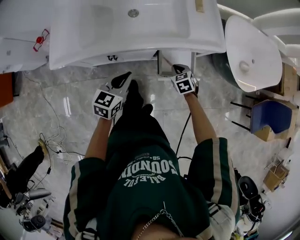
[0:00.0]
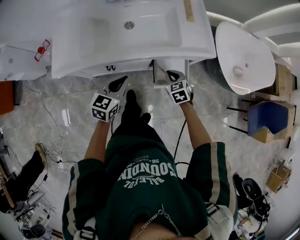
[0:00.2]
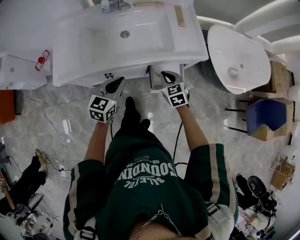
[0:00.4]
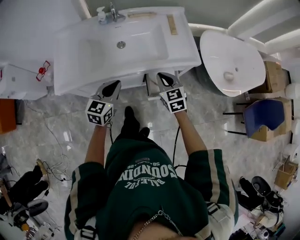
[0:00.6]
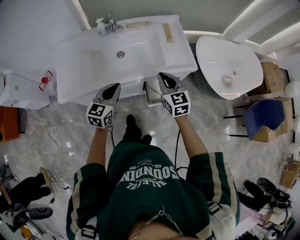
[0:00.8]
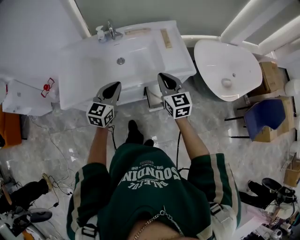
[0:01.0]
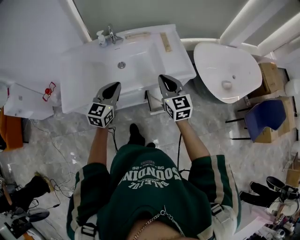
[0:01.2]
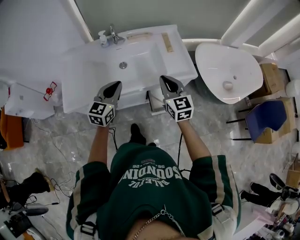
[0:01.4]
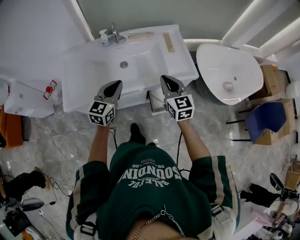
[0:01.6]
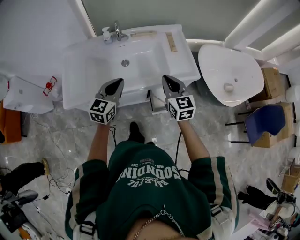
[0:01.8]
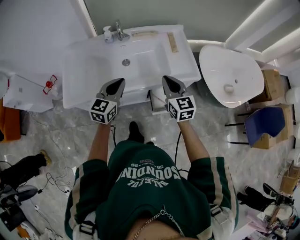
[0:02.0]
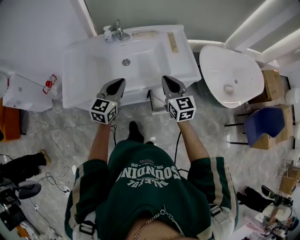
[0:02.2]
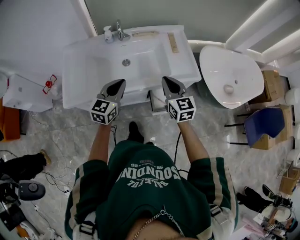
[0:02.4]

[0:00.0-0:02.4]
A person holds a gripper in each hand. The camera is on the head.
0.0 to 1.2 s: The left gripper moves upward and forward, approximately 20 cm. Meanwhile the right gripper moves upward, some 35 cm, and tips its fingers upward by some 50 degrees.
1.2 to 2.4 s: The grippers make only small movements.

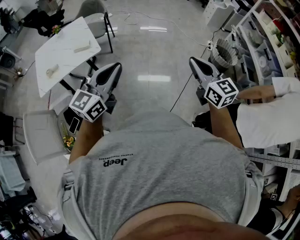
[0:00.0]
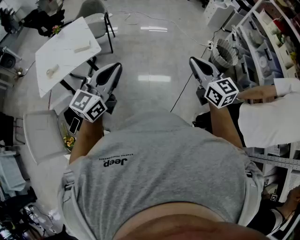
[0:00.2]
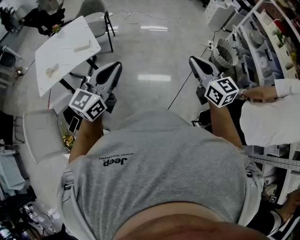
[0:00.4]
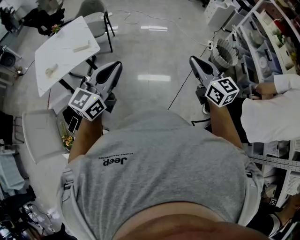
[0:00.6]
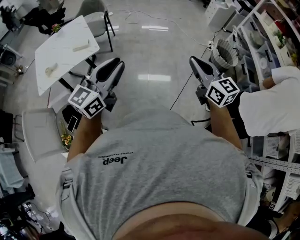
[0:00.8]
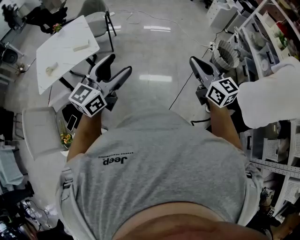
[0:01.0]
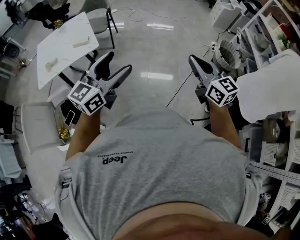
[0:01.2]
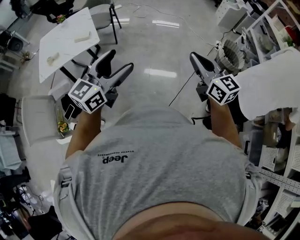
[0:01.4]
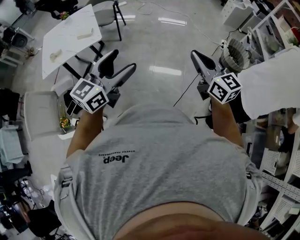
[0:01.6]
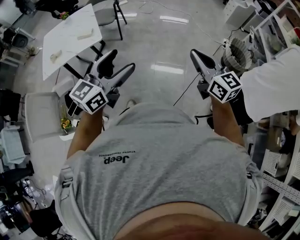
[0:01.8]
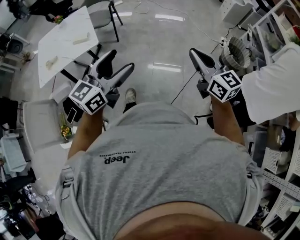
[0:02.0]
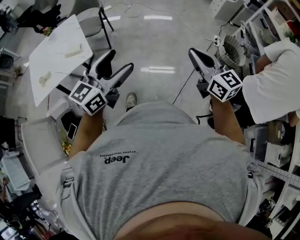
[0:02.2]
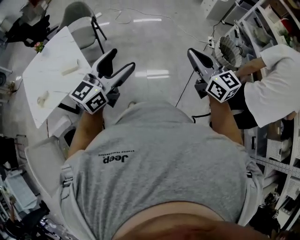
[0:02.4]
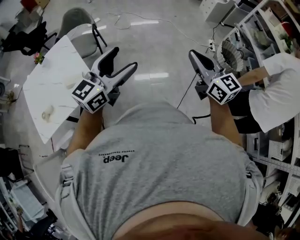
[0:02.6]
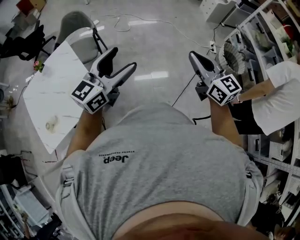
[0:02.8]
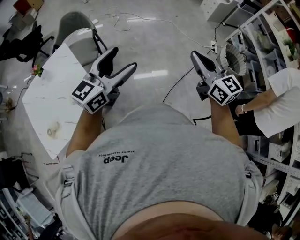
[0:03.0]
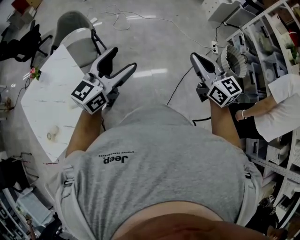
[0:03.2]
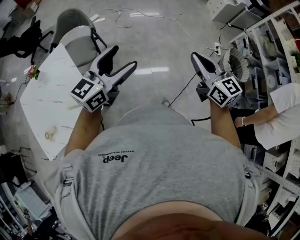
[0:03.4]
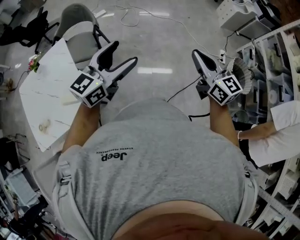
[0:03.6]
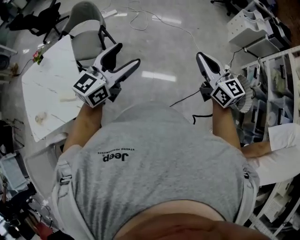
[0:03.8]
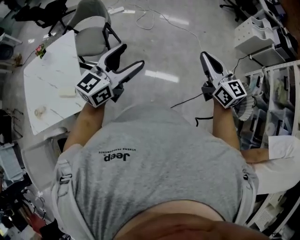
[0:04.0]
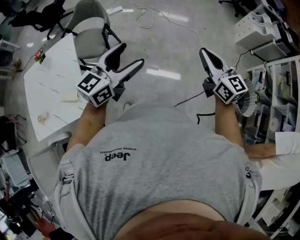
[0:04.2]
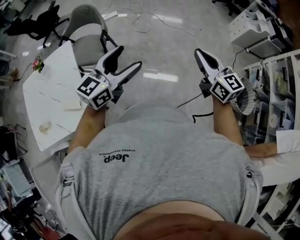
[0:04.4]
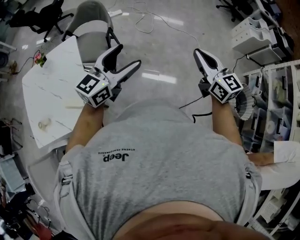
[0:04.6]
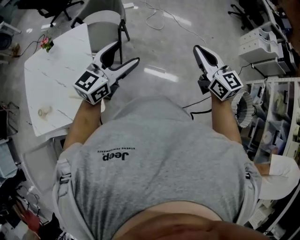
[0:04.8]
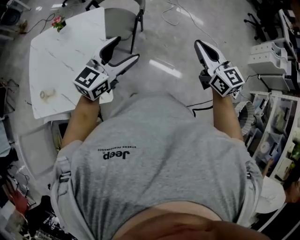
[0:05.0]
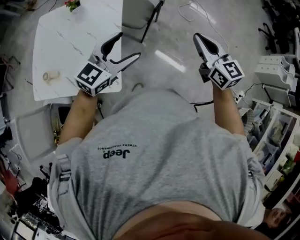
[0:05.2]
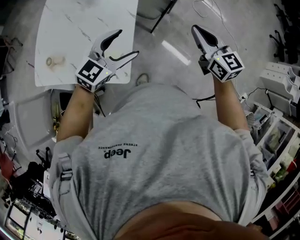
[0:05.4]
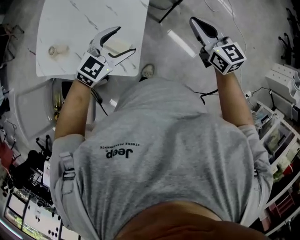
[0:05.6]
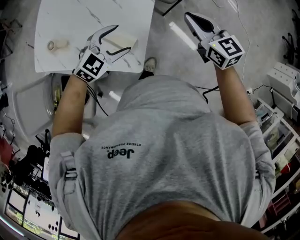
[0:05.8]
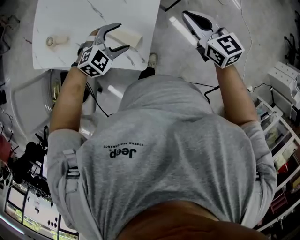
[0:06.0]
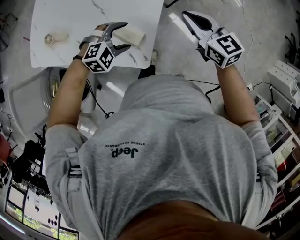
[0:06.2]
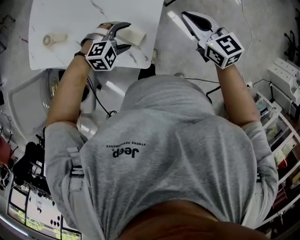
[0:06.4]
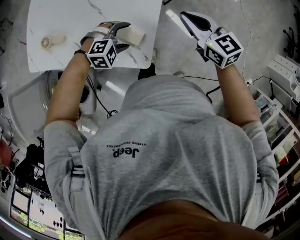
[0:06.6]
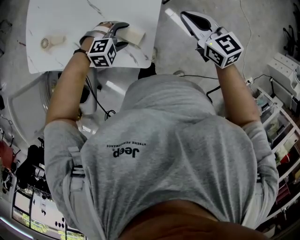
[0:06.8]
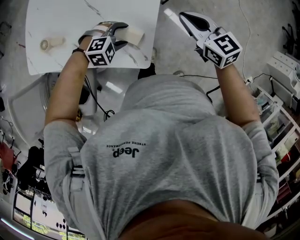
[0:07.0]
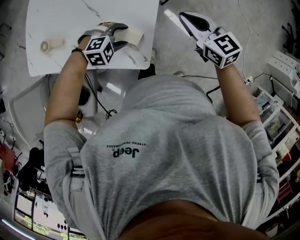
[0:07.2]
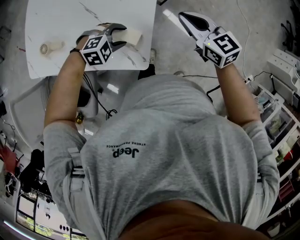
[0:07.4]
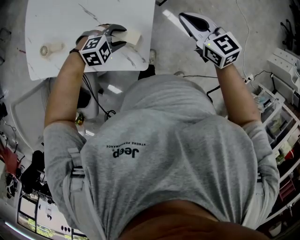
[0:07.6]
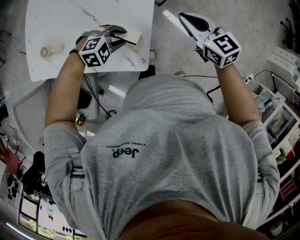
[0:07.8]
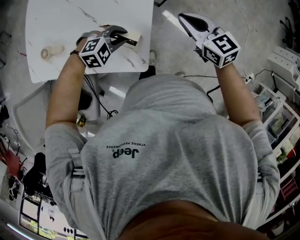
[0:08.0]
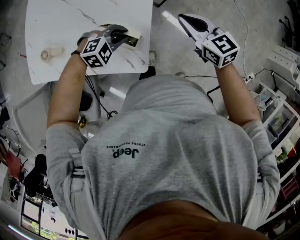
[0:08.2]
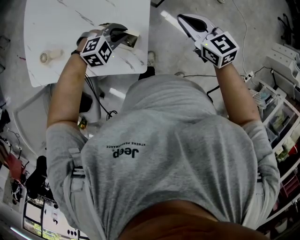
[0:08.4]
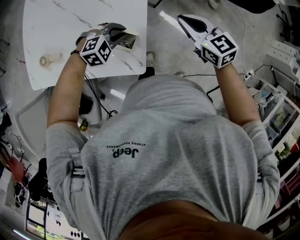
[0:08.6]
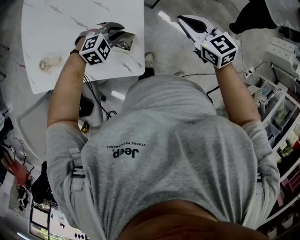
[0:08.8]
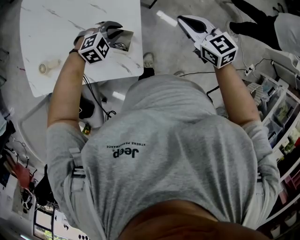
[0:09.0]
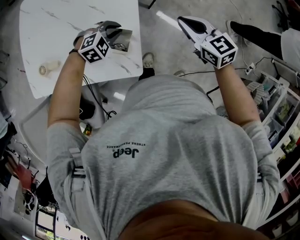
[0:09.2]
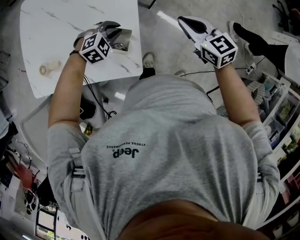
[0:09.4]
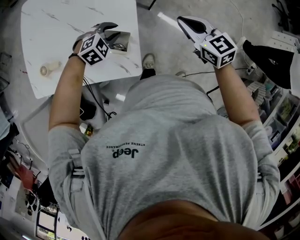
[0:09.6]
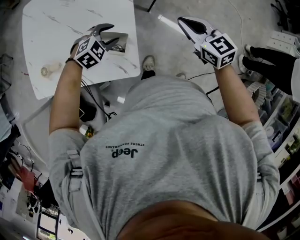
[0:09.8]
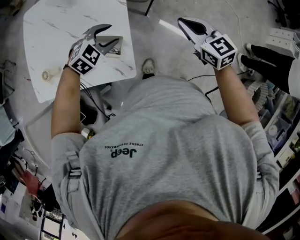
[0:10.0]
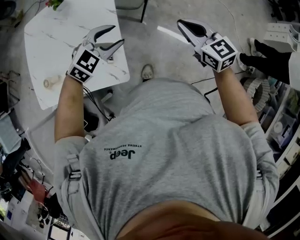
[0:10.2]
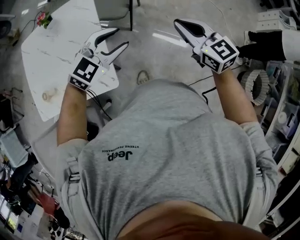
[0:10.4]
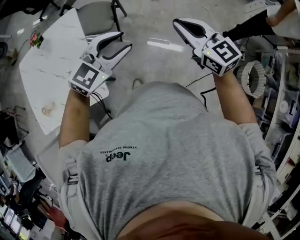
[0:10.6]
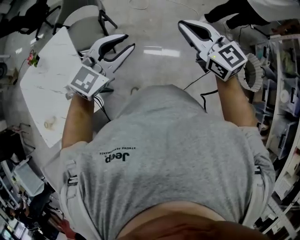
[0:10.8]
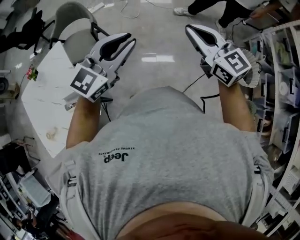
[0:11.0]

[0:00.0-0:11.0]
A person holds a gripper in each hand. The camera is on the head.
0.0 to 1.6 s: The grippers both shift to the right by approximately 10 cm. The left gripper opens up.
1.6 to 3.2 s: The pair of grippers is taken forward and to the left, roughly 50 cm.
3.2 to 4.8 s: The right gripper is displaced forward by some 25 cm, and rotates roughly 20 degrees. Meanwhile the left gripper travels forward and to the left by approximately 20 cm, and changes its angle by roughly 20 degrees.
4.8 to 6.2 s: The left gripper heads downward and to the left, covering some 50 cm, and tips its fingers downward by about 50 degrees. Meanwhile the right gripper travels to the left and downward by about 50 cm, and turns by approximately 40 degrees.
6.2 to 7.8 s: The left gripper closes.
7.8 to 9.4 s: The right gripper moves approximately 5 cm; the left gripper changes place by about 10 cm.
9.4 to 11.0 s: Both grippers are carried roughly 50 cm. The right gripper changes its angle by roughly 40 degrees. The left gripper angles its fingers upward, by about 50 degrees.

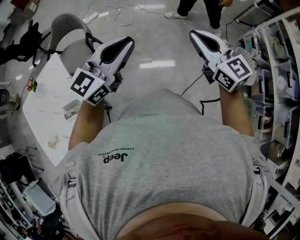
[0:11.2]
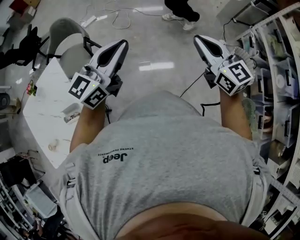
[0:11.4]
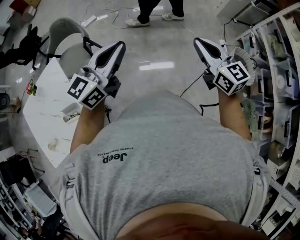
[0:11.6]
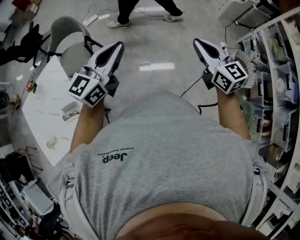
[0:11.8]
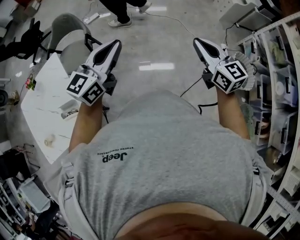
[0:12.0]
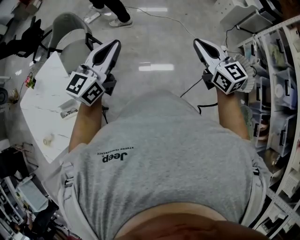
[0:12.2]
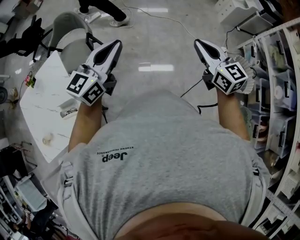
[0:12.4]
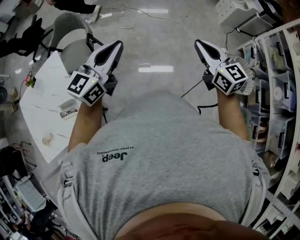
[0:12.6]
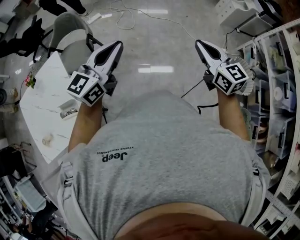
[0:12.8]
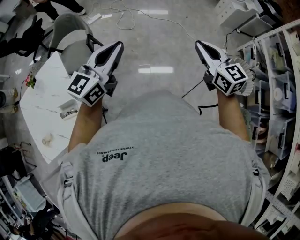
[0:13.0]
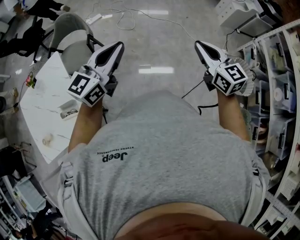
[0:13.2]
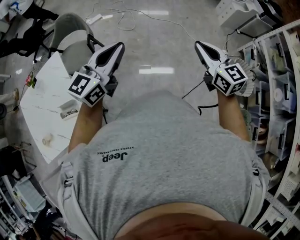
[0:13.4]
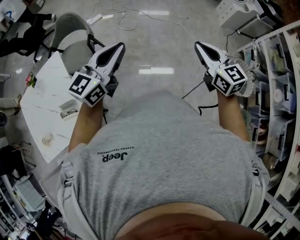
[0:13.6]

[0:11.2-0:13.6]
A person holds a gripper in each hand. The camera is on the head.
11.2 to 12.4 s: The right gripper shifts by roughly 5 cm.
12.4 to 13.6 s: The two grippers keep their place.

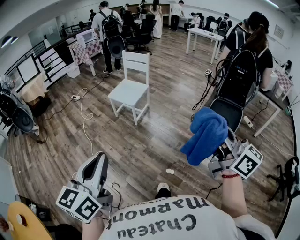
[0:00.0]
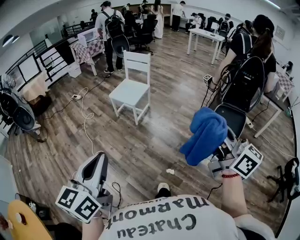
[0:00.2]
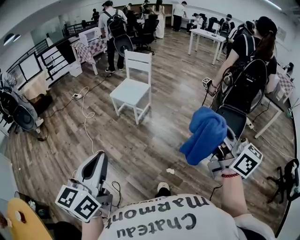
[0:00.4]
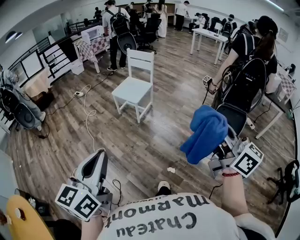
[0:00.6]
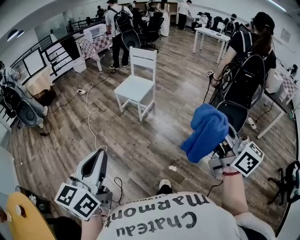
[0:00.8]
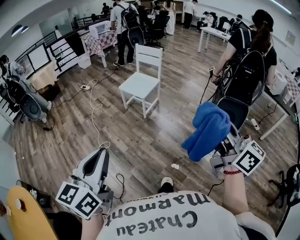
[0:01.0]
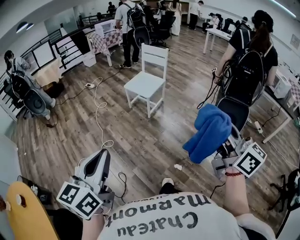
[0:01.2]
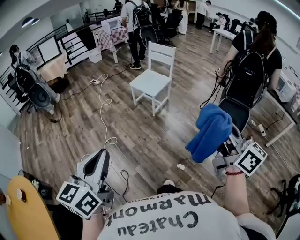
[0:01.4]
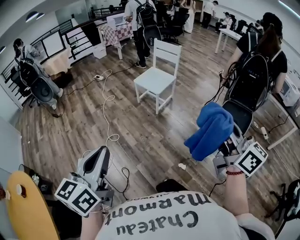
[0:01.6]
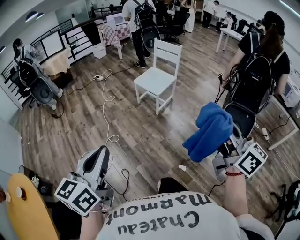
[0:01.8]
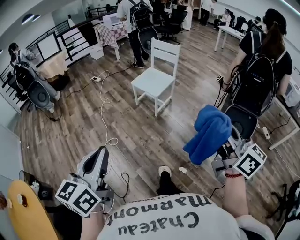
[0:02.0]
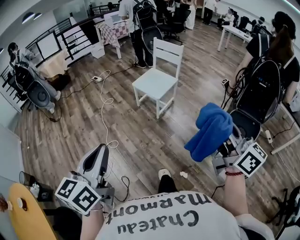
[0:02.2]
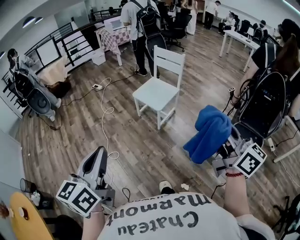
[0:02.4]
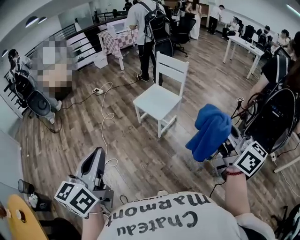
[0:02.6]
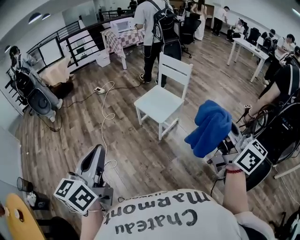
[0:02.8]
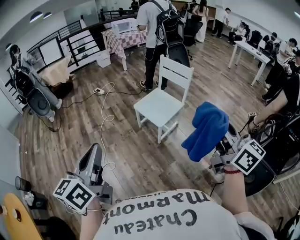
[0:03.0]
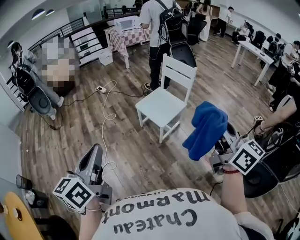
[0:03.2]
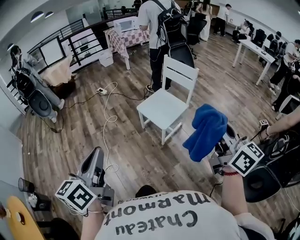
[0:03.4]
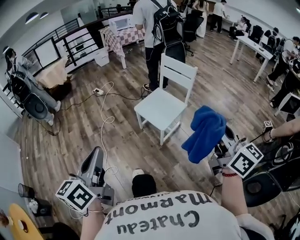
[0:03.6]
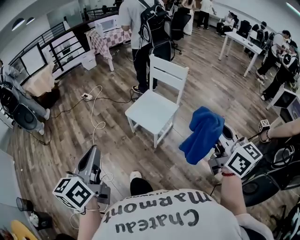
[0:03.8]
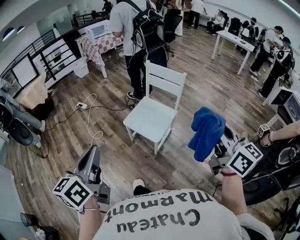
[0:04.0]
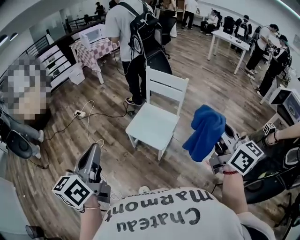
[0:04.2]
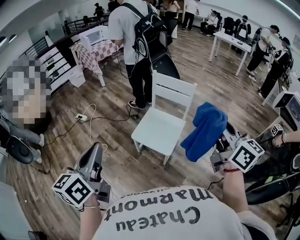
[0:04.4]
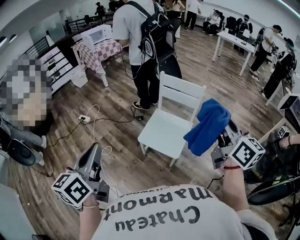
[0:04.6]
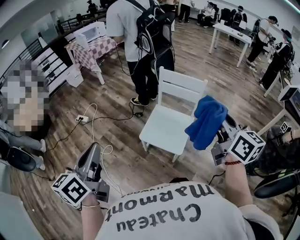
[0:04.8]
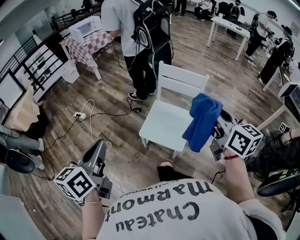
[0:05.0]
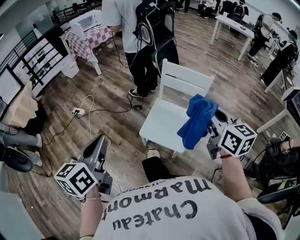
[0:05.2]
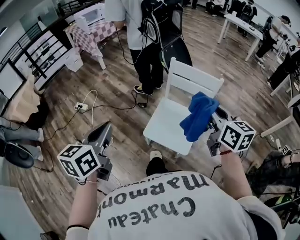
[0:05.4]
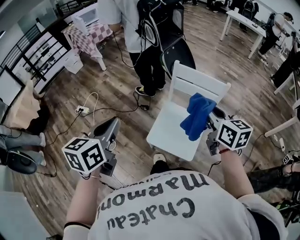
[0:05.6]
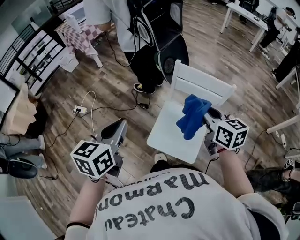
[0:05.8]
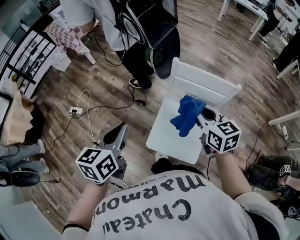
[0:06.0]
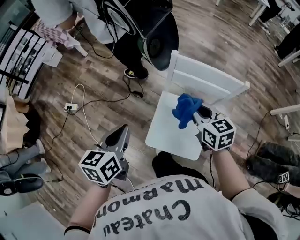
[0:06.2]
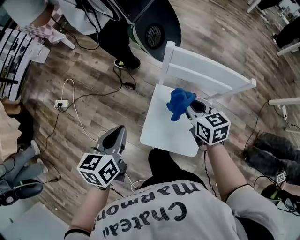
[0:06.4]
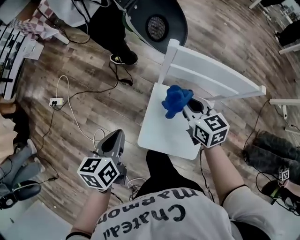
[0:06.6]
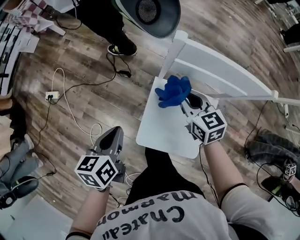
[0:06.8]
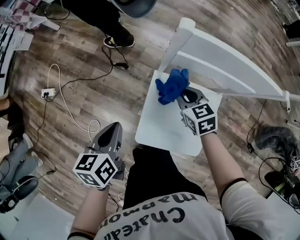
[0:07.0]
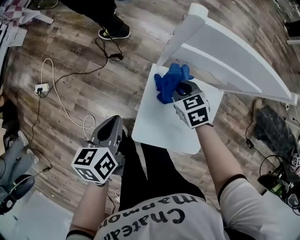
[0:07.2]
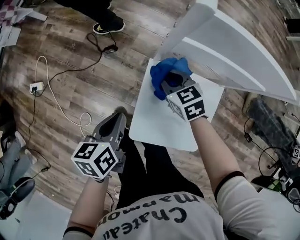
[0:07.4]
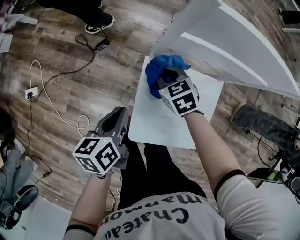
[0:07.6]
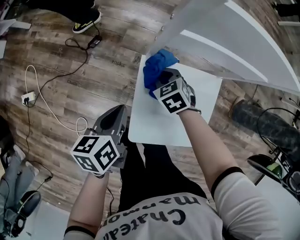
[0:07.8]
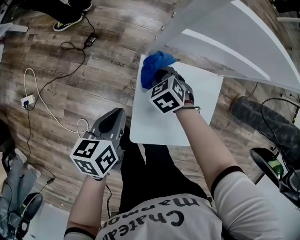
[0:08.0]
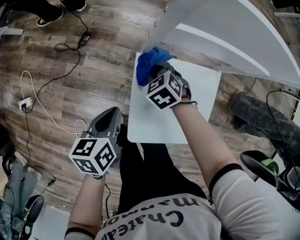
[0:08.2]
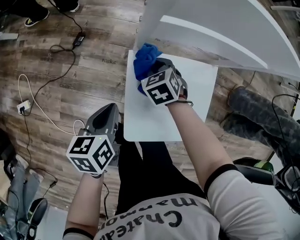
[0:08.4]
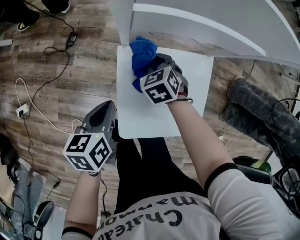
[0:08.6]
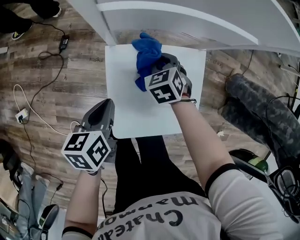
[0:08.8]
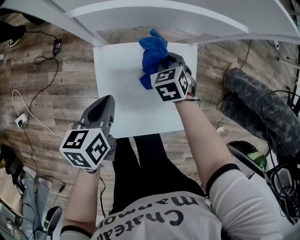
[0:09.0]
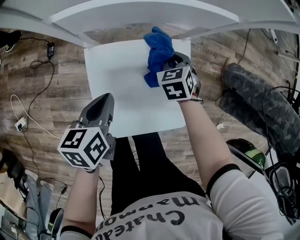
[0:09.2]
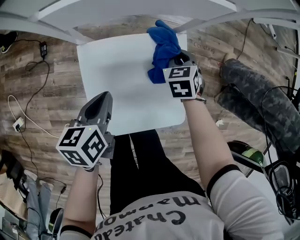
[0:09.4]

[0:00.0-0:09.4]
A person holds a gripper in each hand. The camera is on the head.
0.0 to 1.6 s: The two grippers go some 10 cm to the left.
1.6 to 3.2 s: The two grippers go roughly 40 cm forward.
3.2 to 4.8 s: The grippers both shift forward by about 40 cm. The left gripper rotates some 20 degrees, while the right gripper swivels some 30 degrees.
4.8 to 6.2 s: The two grippers go approximately 50 cm forward and downward. The right gripper tips its fingers downward by roughly 30 degrees; the left gripper turns by about 30 degrees.
6.2 to 7.8 s: Both grippers travel together downward, some 35 cm. The left gripper rotates roughly 30 degrees. Meanwhile the right gripper tips its fingers downward by about 30 degrees.
7.8 to 9.4 s: The left gripper changes place by some 15 cm. The right gripper ends up approximately 25 cm from where it was, and swivels roughly 30 degrees.
